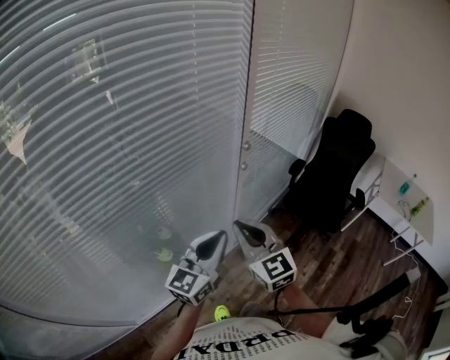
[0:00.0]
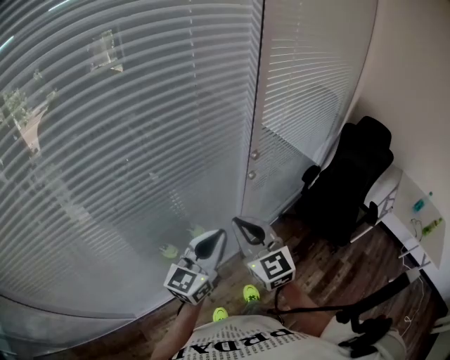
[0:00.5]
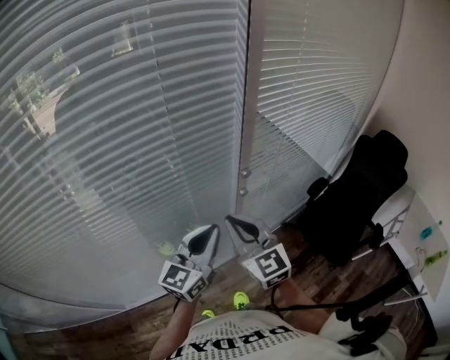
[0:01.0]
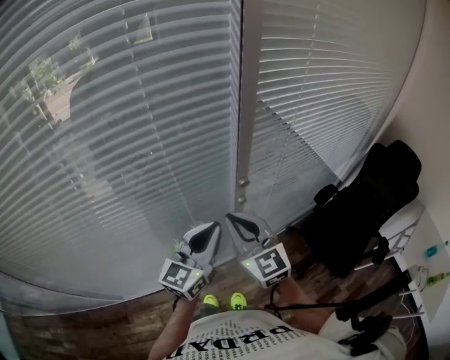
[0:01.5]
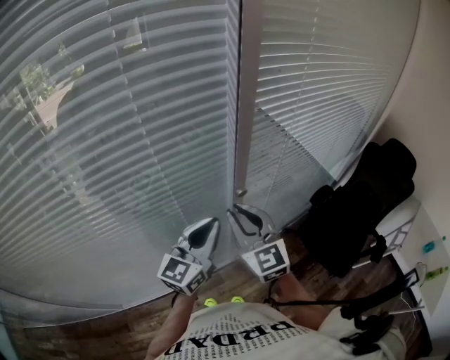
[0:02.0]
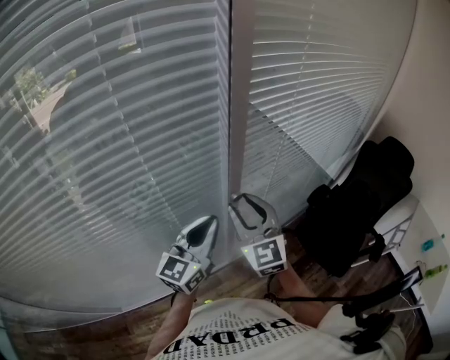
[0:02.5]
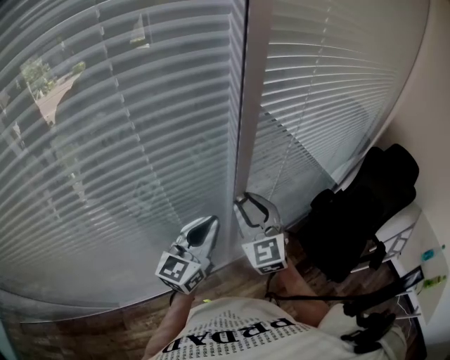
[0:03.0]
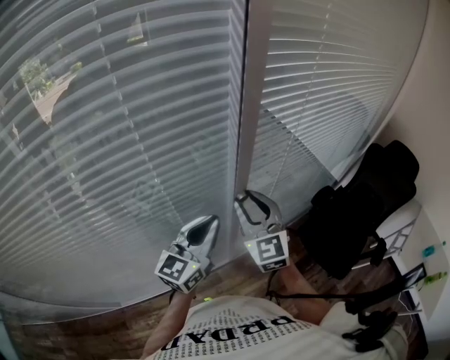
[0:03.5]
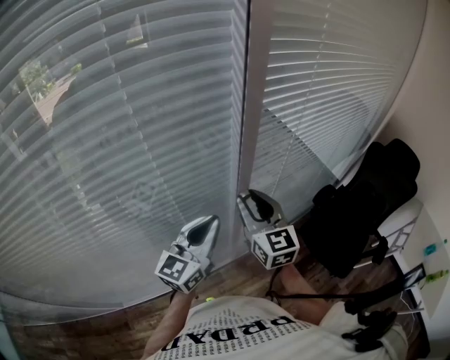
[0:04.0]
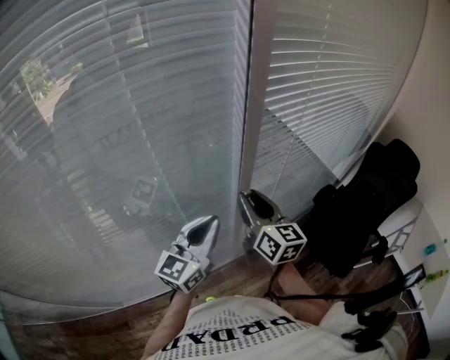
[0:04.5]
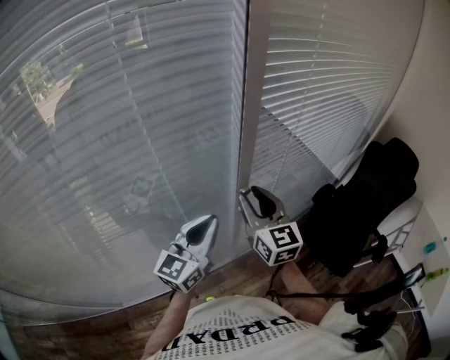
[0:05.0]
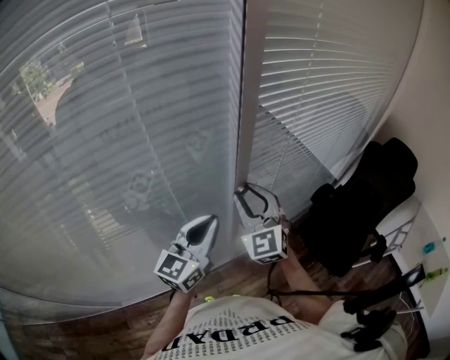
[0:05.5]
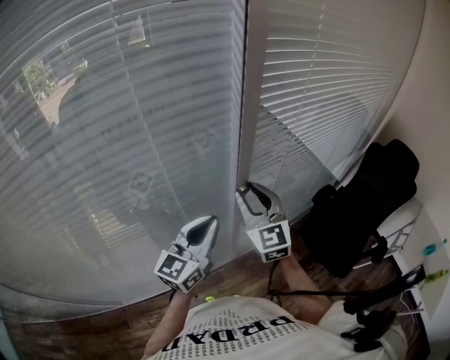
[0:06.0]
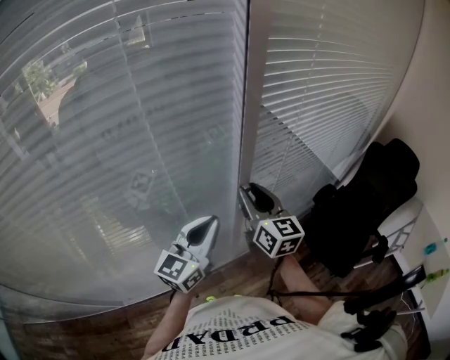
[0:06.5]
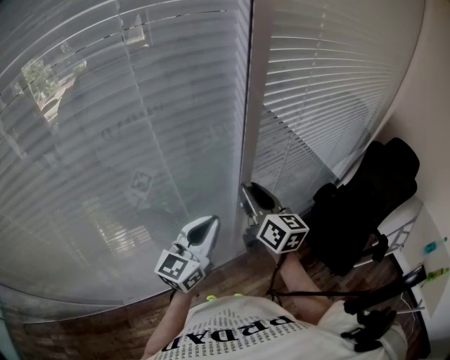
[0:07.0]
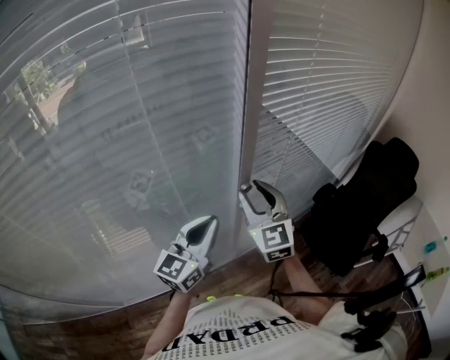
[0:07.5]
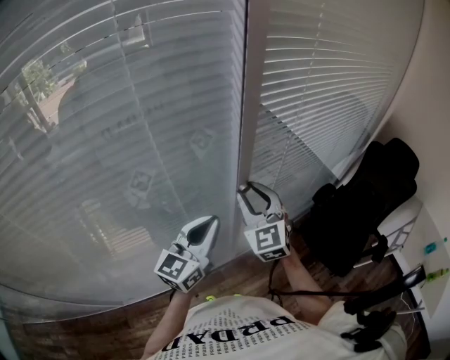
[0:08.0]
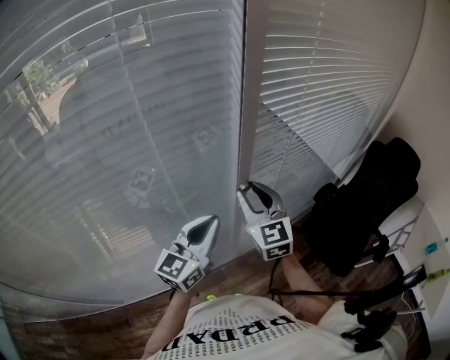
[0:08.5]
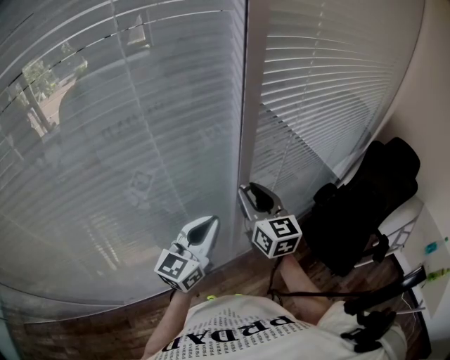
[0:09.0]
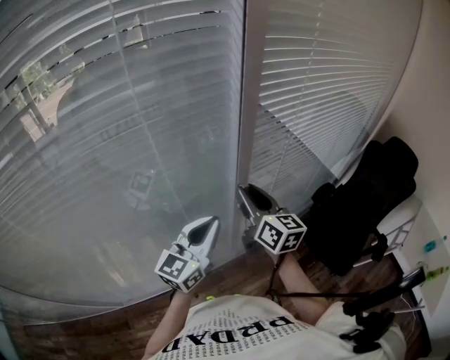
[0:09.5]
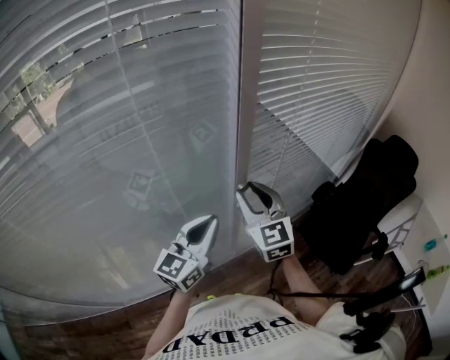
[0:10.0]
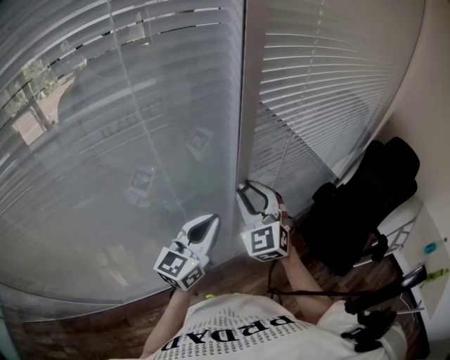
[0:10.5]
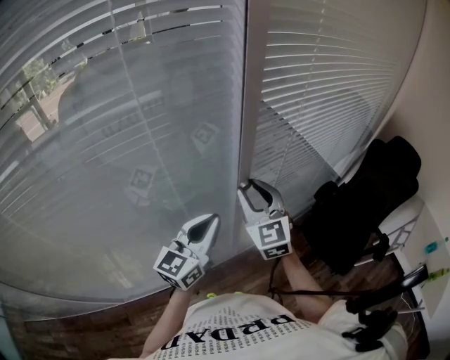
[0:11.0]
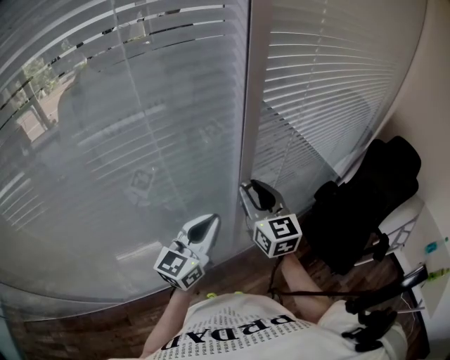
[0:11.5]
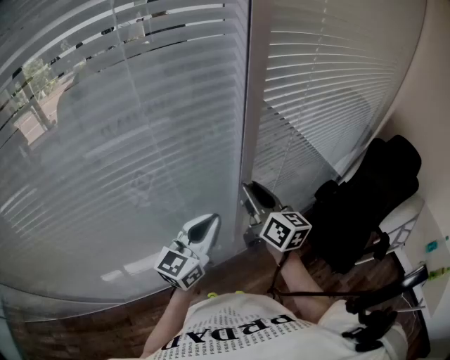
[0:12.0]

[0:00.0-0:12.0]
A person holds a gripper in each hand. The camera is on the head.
0:00.0 to 0:02.0: The grippers both shift forward and to the right by some 25 cm.
0:02.0 to 0:04.0: The right gripper heads forward, covering some 5 cm.
0:10.0 to 0:12.0: The right gripper rotates around the line of its fingers by roughly 40 degrees, clockwise from behind.

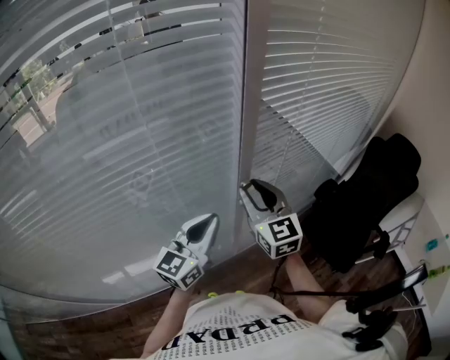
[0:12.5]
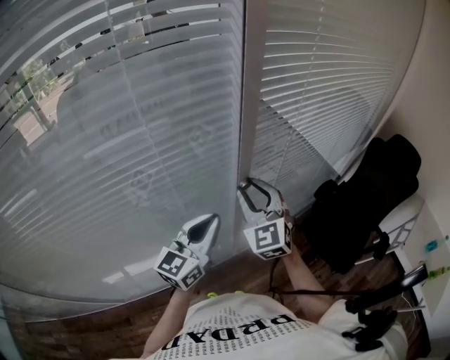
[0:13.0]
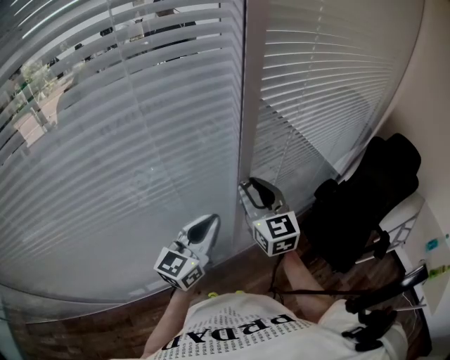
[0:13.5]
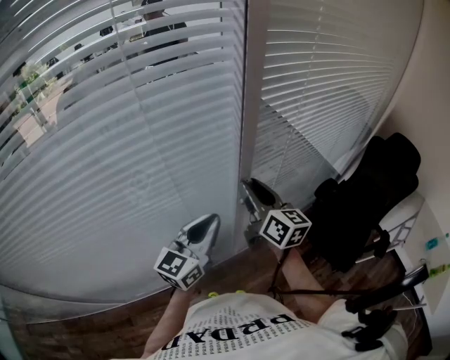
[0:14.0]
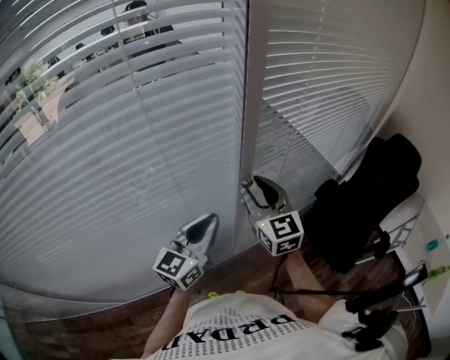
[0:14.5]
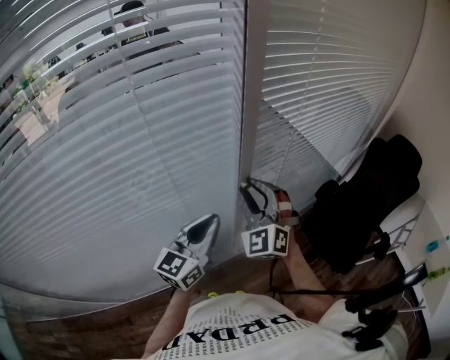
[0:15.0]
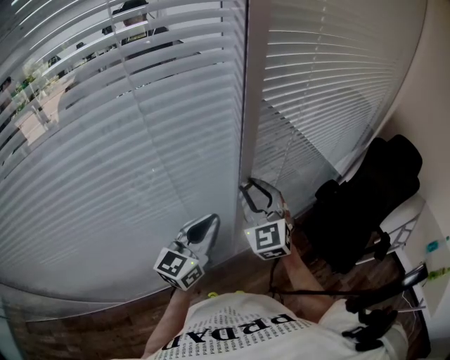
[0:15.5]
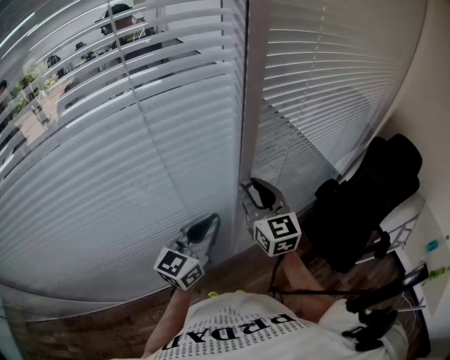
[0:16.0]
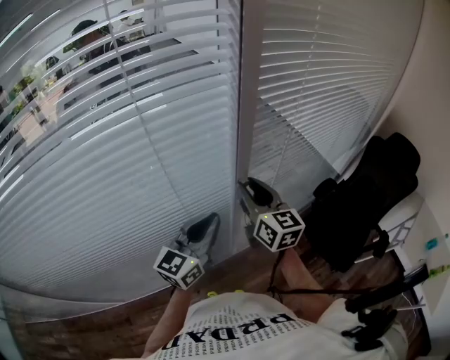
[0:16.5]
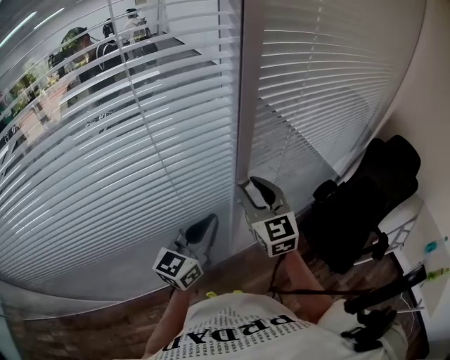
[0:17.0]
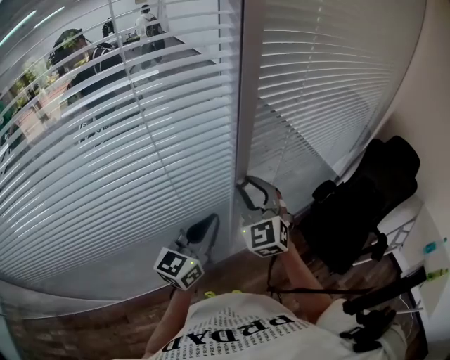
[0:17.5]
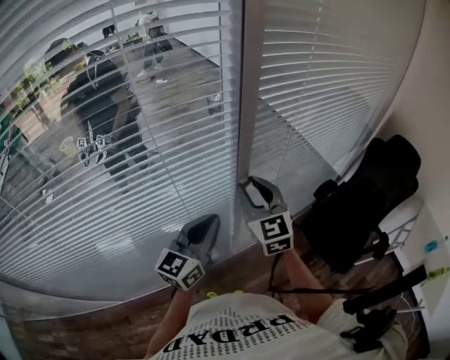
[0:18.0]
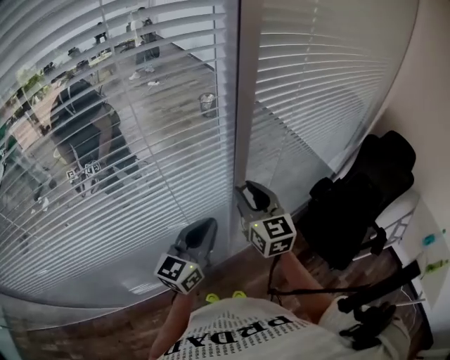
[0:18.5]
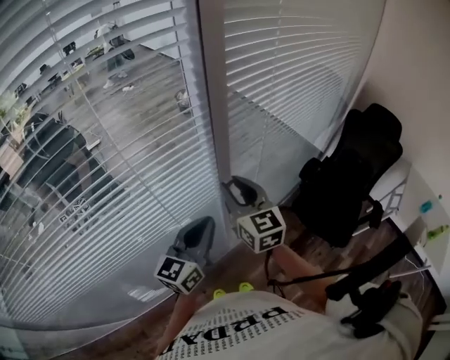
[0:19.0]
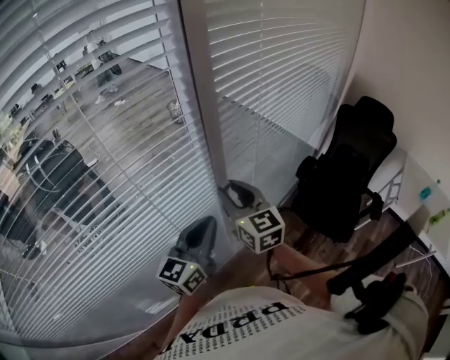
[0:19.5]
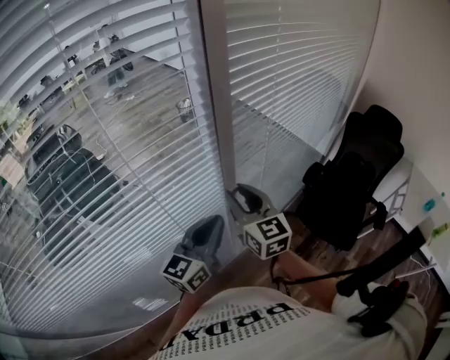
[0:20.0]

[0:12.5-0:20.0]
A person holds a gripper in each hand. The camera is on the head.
0:14.5 to 0:16.5: The right gripper swivels some 20 degrees.
0:16.5 to 0:18.0: The right gripper turns by some 30 degrees.
0:18.0 to 0:20.0: The grippers move only a little.

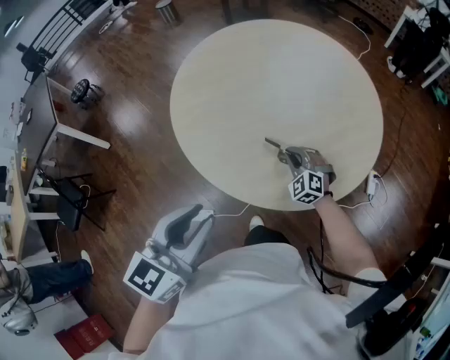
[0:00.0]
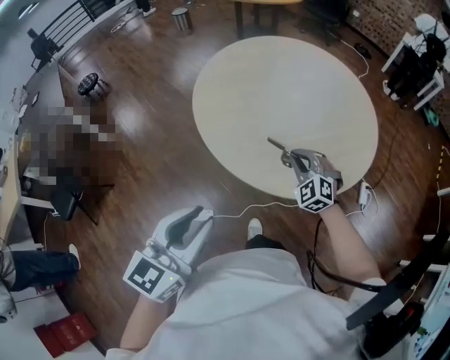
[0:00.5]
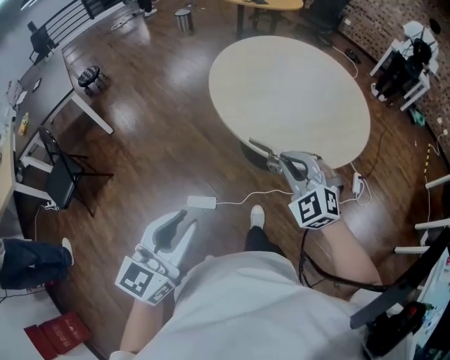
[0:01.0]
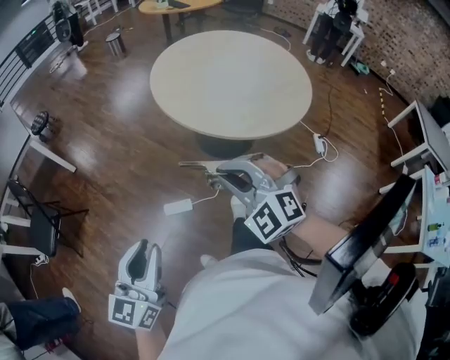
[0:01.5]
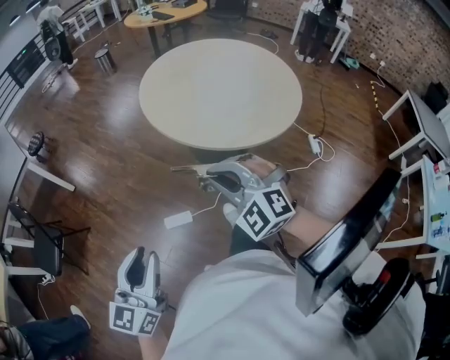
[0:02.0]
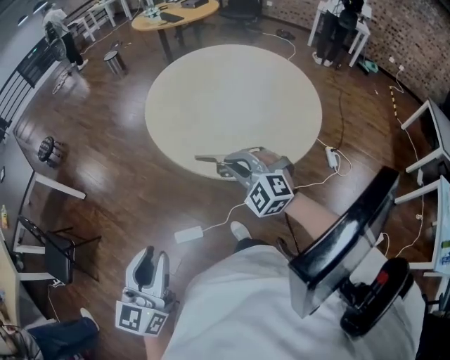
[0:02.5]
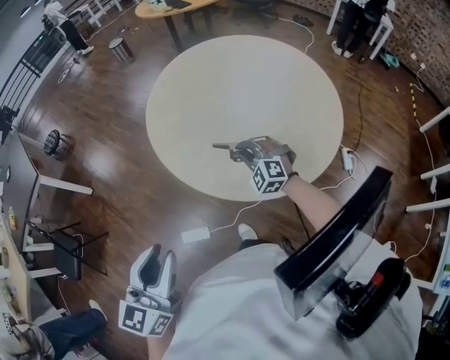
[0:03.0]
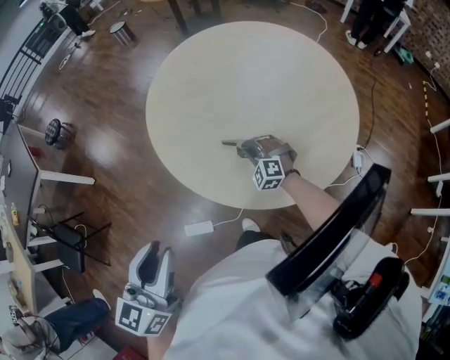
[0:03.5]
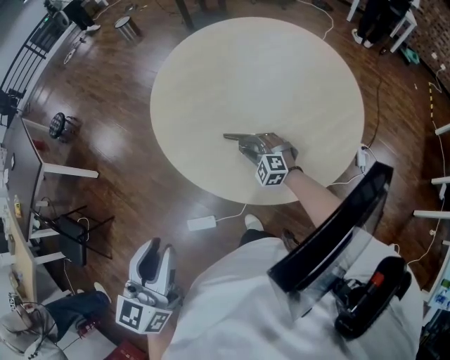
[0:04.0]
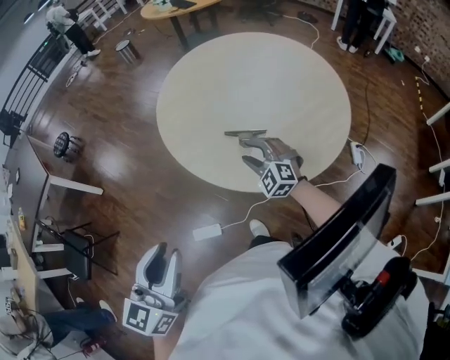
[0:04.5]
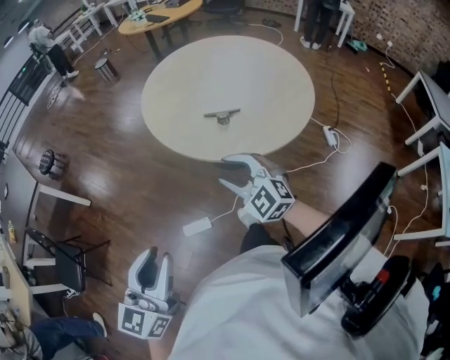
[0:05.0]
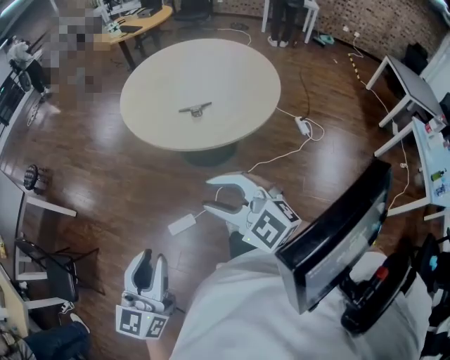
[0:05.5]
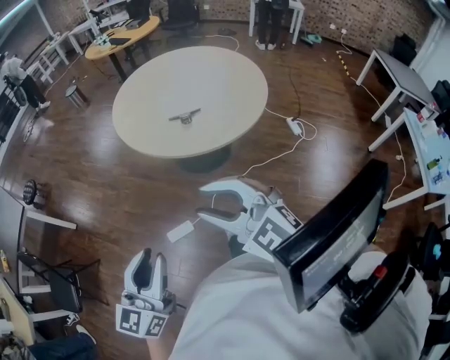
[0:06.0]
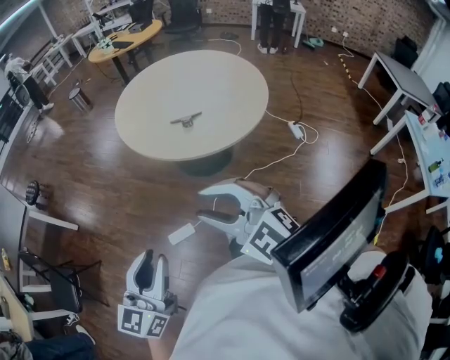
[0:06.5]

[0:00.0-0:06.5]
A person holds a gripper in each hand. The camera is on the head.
0:00.0 to 0:02.0: The right gripper is displaced backward, upward and to the left by some 50 cm; the left gripper goes some 30 cm backward and to the left.
0:02.0 to 0:04.5: The right gripper moves forward and downward, approximately 30 cm, and opens its fingers; the left gripper travels forward and to the right by roughly 20 cm.
0:04.5 to 0:06.5: The left gripper shifts roughly 15 cm backward. The right gripper goes some 40 cm backward and upward, and turns by approximately 20 degrees.

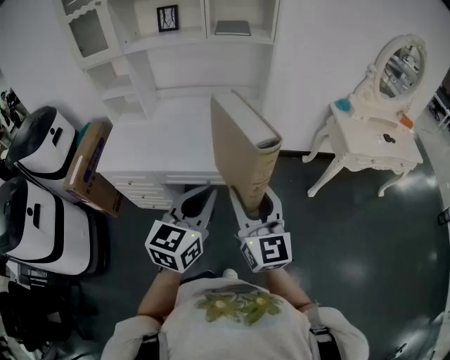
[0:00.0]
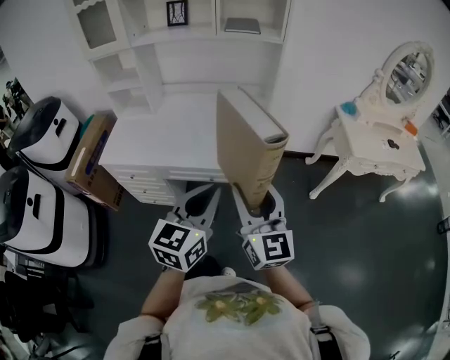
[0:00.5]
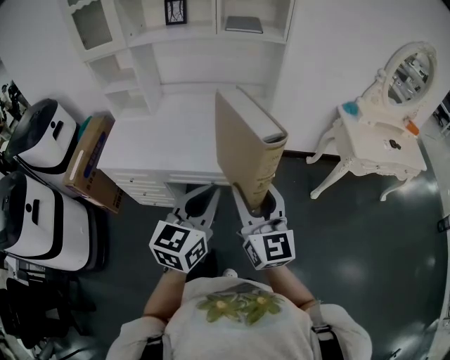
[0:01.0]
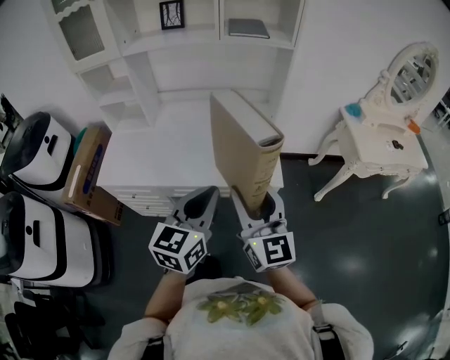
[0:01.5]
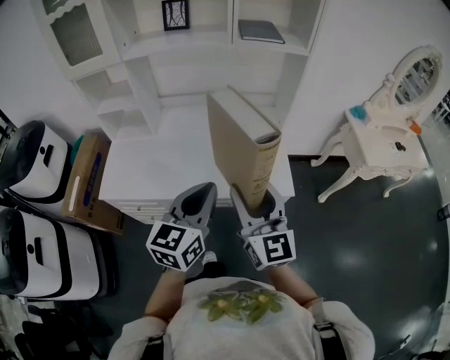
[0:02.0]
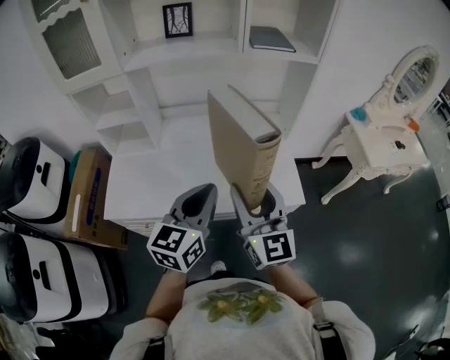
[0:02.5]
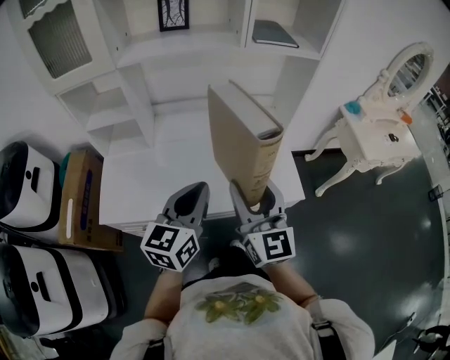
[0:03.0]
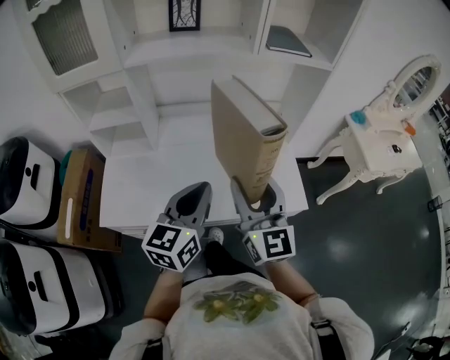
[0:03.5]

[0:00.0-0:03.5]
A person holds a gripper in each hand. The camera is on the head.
0:00.0 to 0:02.0: The grippers both shift forward and to the left by approximately 20 cm.
0:02.0 to 0:03.5: Both grippers move to the left and forward, roughly 15 cm.
